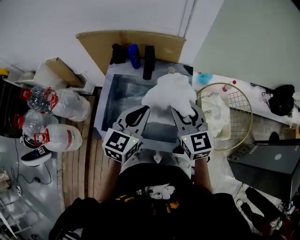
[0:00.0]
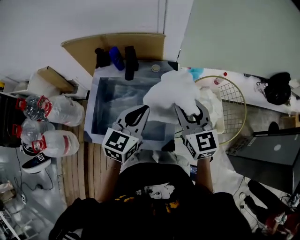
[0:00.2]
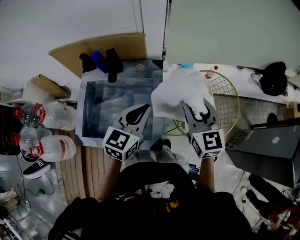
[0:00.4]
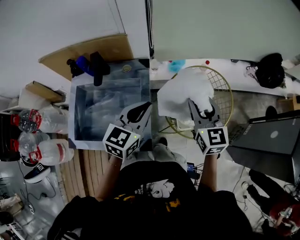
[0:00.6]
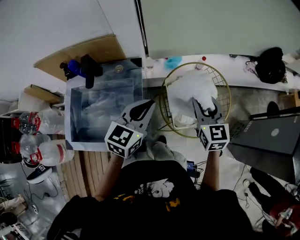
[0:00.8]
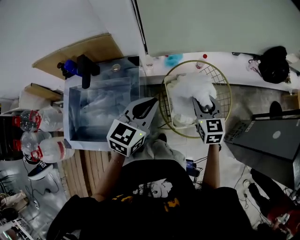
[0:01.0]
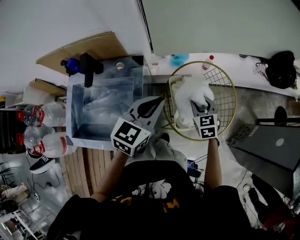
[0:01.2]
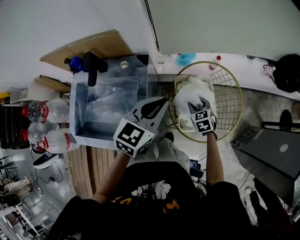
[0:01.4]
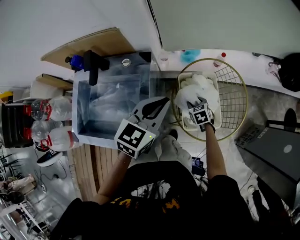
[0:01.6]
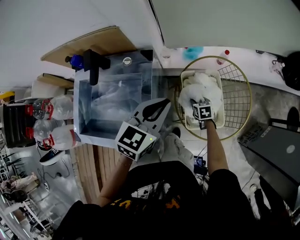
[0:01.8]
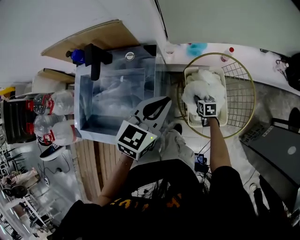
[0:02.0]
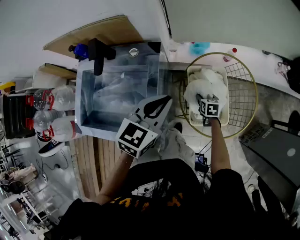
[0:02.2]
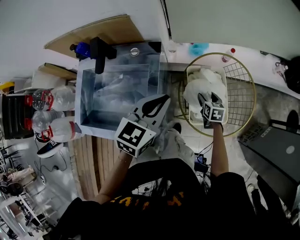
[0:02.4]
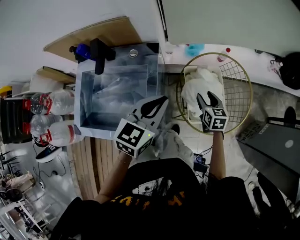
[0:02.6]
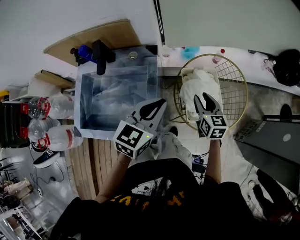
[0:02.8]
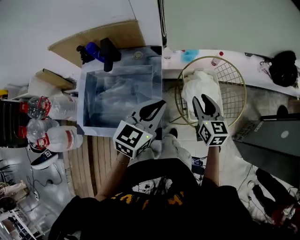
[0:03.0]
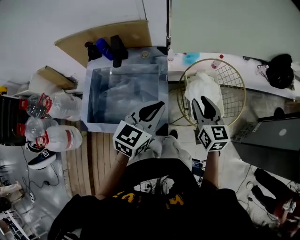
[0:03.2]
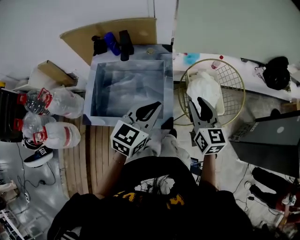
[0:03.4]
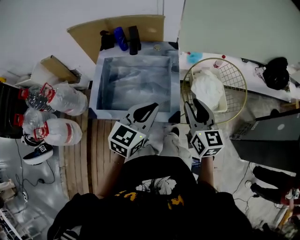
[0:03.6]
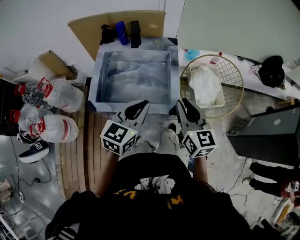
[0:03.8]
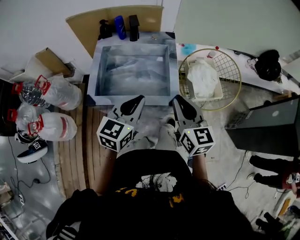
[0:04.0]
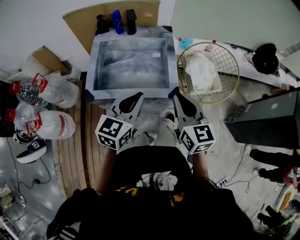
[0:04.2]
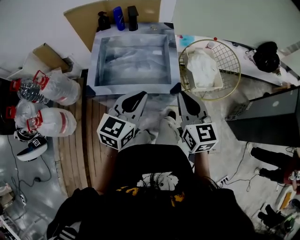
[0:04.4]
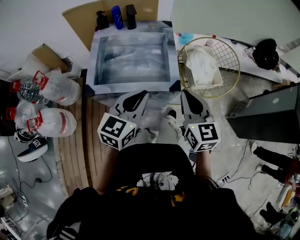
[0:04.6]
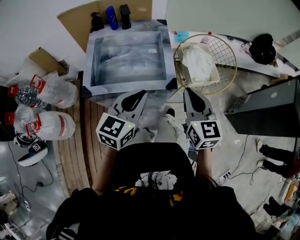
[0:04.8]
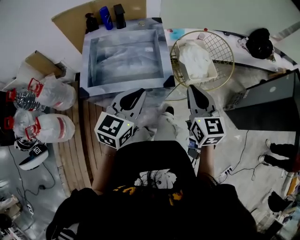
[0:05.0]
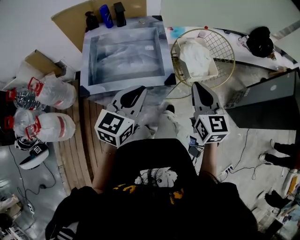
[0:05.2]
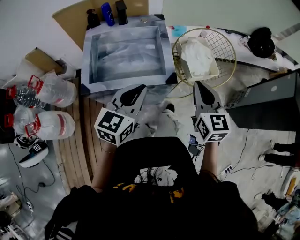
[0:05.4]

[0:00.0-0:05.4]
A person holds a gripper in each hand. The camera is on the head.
0:00.0 to 0:01.4: The left gripper goes approximately 30 cm to the right; the right gripper travels to the right and downward by approximately 40 cm, and tilts its fingers approximately 30 degrees downward.
0:01.4 to 0:02.8: The left gripper moves backward and to the left, approximately 10 cm. The right gripper shifts about 10 cm upward, and changes its angle by approximately 30 degrees.
0:02.8 to 0:04.0: The right gripper is displaced backward, to the left and upward by roughly 40 cm. Meanwhile the left gripper goes about 30 cm backward and to the left.
0:04.0 to 0:05.4: The right gripper travels to the right by roughly 10 cm.

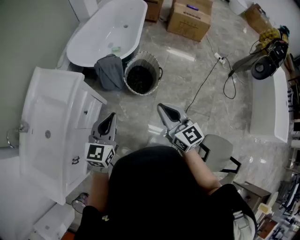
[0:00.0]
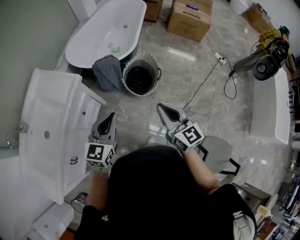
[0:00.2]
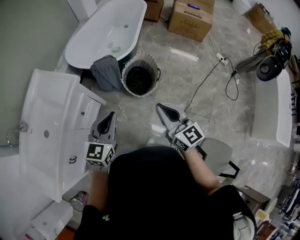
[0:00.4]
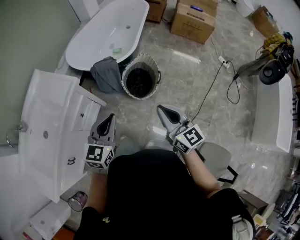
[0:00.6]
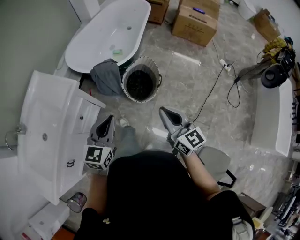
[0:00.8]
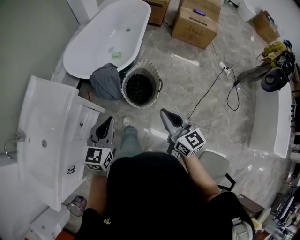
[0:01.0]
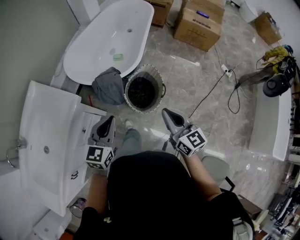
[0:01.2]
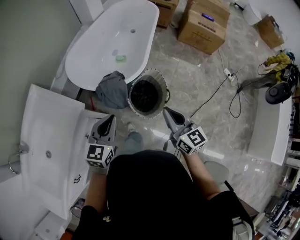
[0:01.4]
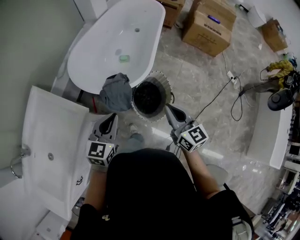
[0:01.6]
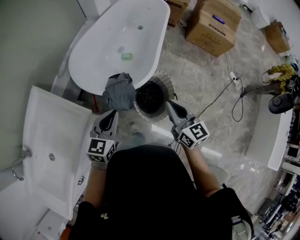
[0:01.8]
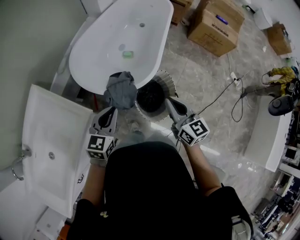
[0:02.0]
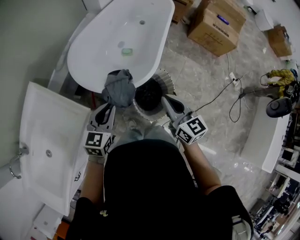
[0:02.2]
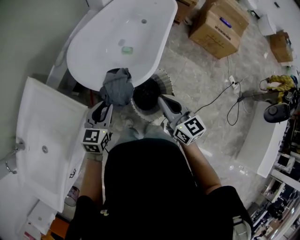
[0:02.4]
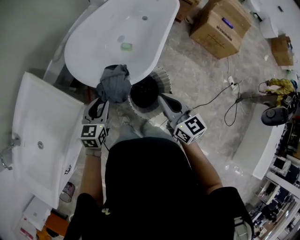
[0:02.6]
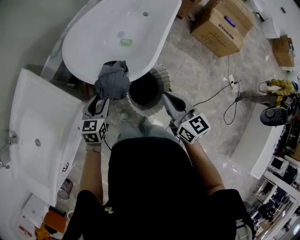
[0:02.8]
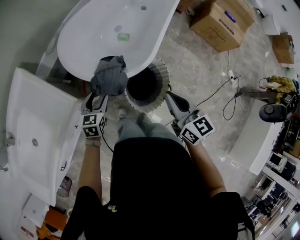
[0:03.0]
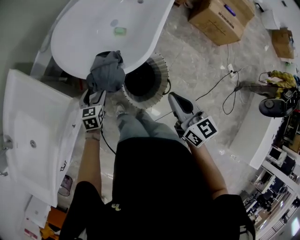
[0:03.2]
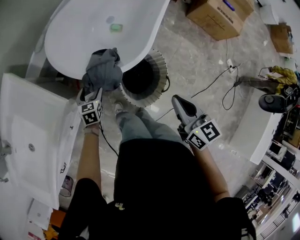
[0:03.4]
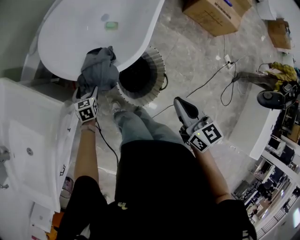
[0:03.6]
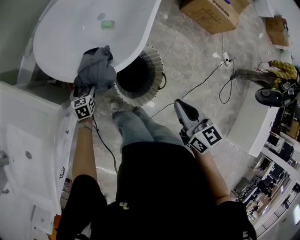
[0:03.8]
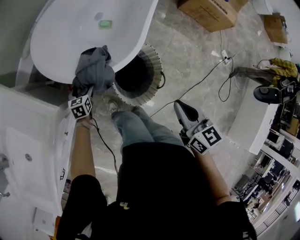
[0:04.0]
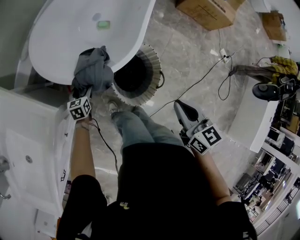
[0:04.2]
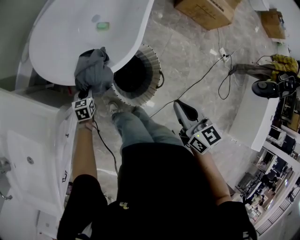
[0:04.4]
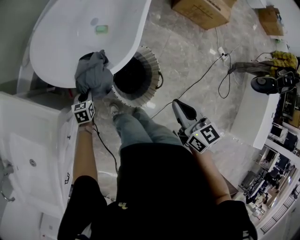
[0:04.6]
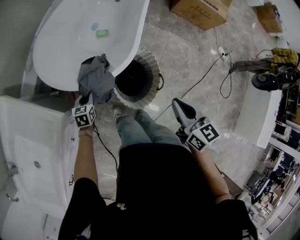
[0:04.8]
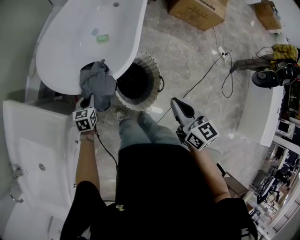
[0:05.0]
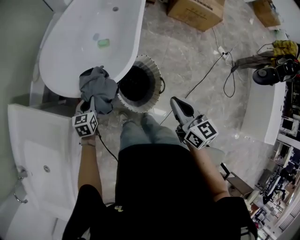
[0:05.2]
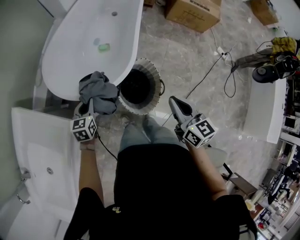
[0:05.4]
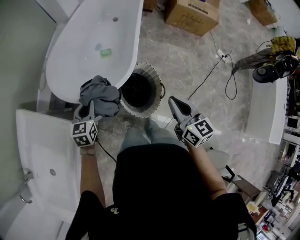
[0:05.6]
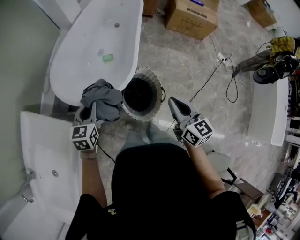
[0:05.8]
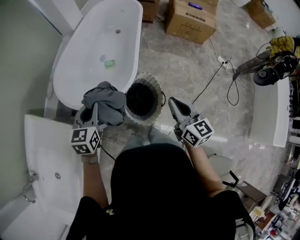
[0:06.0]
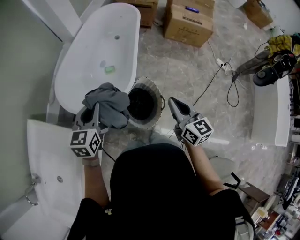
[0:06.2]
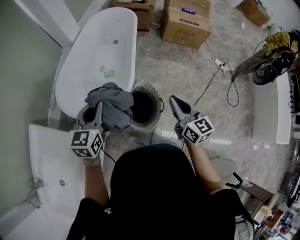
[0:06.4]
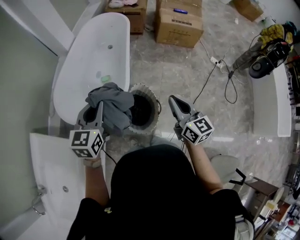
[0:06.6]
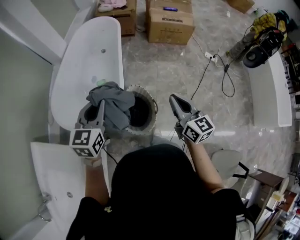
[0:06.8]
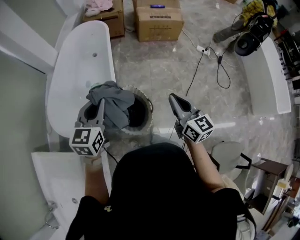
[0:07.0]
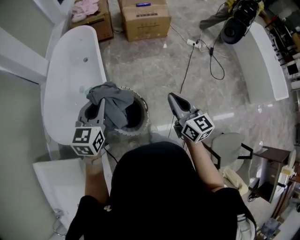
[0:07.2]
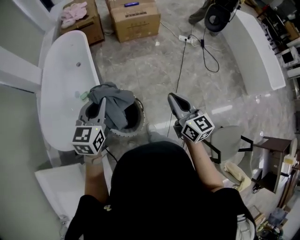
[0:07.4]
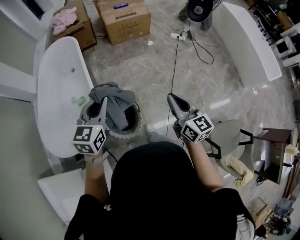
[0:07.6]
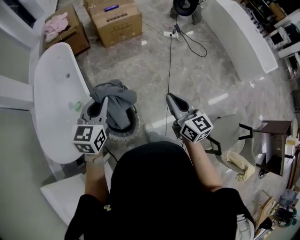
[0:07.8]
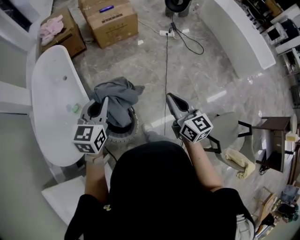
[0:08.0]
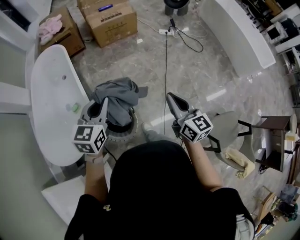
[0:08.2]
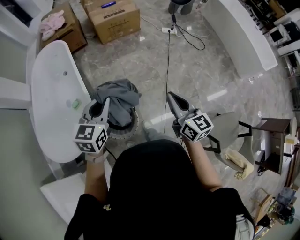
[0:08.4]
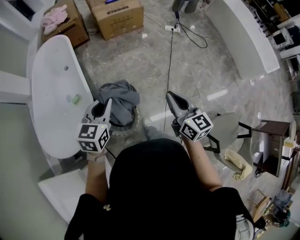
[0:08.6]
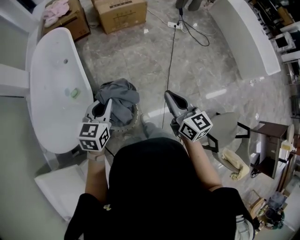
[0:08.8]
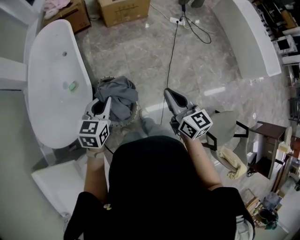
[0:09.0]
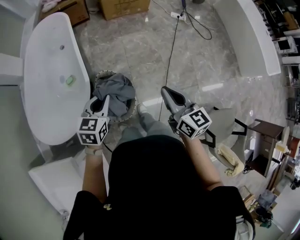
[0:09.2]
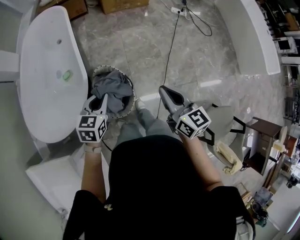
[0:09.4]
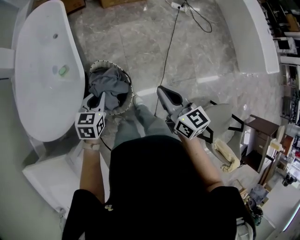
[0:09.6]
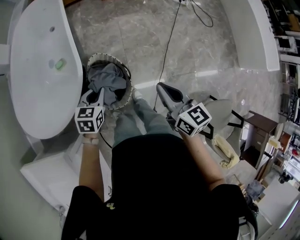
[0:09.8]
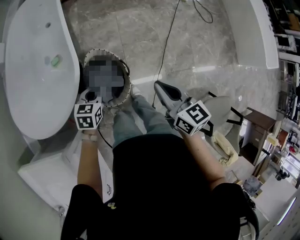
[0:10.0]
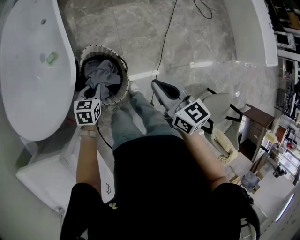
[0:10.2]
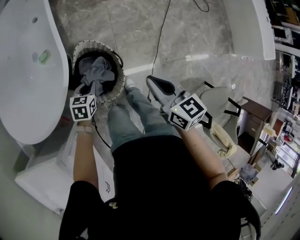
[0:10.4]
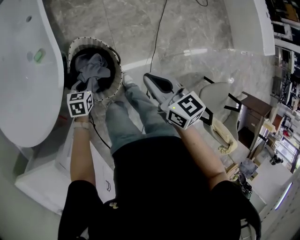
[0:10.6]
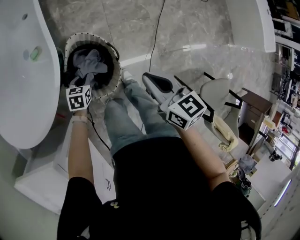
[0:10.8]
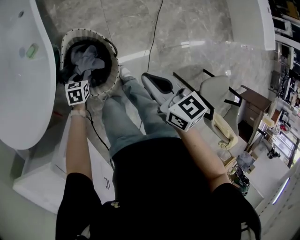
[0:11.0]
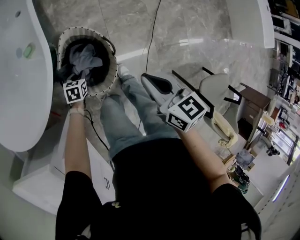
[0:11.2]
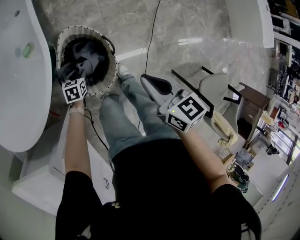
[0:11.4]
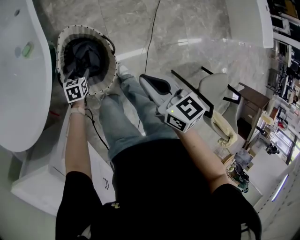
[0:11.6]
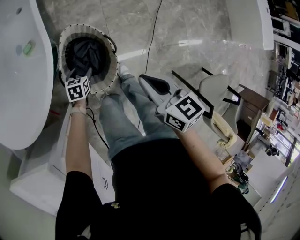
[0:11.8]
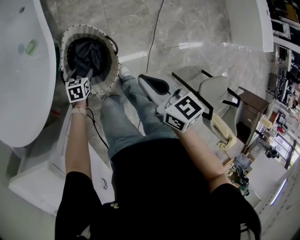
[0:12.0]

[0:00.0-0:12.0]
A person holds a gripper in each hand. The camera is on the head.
0:00.0 to 0:01.6: Both grippers travel together forward, about 30 cm.
0:01.6 to 0:03.0: The left gripper moves downward and forward, approximately 20 cm, swivels about 30 degrees, and opens; the right gripper shifts some 10 cm forward.
0:03.0 to 0:04.4: The right gripper travels downward, to the right and backward by approximately 10 cm. Meanwhile the left gripper heads downward, covering about 20 cm, and closes its fingers.
0:04.4 to 0:06.0: The left gripper shifts about 40 cm upward, and rotates approximately 30 degrees. Meanwhile the right gripper travels upward by roughly 10 cm.
0:06.0 to 0:07.6: The left gripper ends up about 35 cm from where it was, and turns by some 40 degrees. Meanwhile the right gripper shifts by about 25 cm, and swivels approximately 30 degrees.
0:07.6 to 0:09.0: The right gripper moves about 5 cm. The left gripper shifts about 10 cm downward.
0:09.0 to 0:10.4: The left gripper travels downward by approximately 35 cm, and turns by about 20 degrees, while the right gripper travels downward and to the left by approximately 20 cm.
0:10.4 to 0:12.0: The right gripper shifts roughly 5 cm downward. Meanwhile the left gripper shifts roughly 15 cm downward, and opens up.

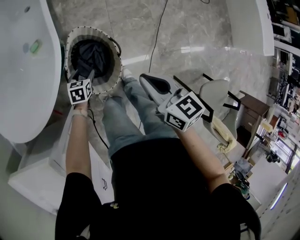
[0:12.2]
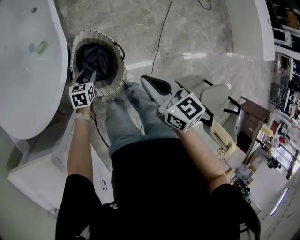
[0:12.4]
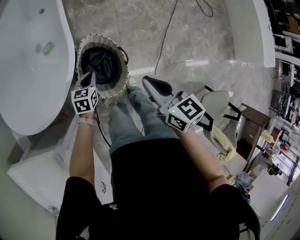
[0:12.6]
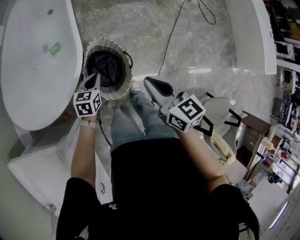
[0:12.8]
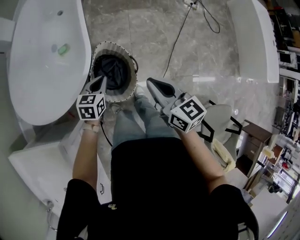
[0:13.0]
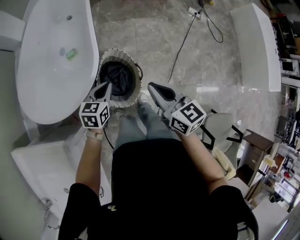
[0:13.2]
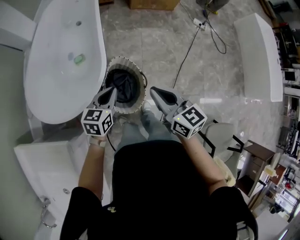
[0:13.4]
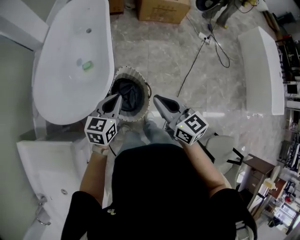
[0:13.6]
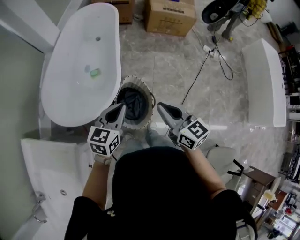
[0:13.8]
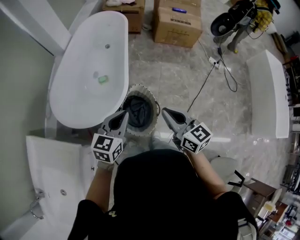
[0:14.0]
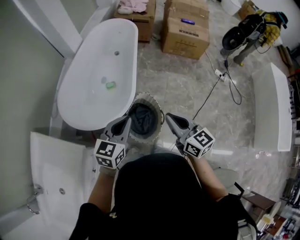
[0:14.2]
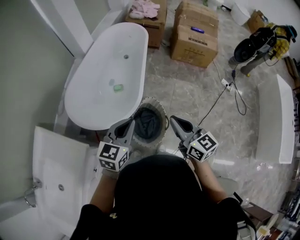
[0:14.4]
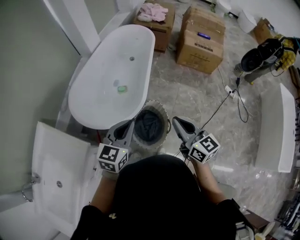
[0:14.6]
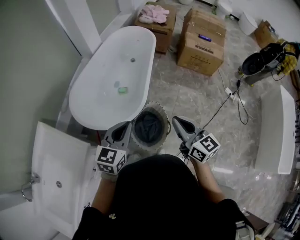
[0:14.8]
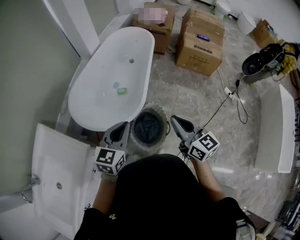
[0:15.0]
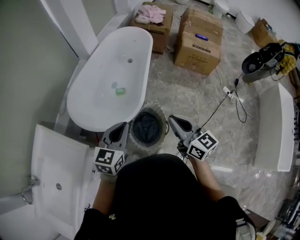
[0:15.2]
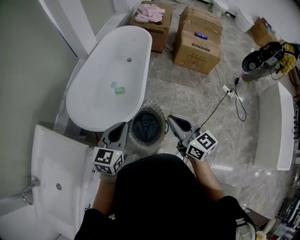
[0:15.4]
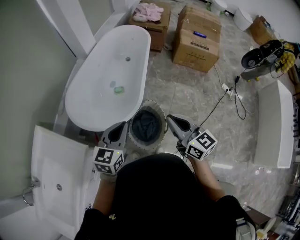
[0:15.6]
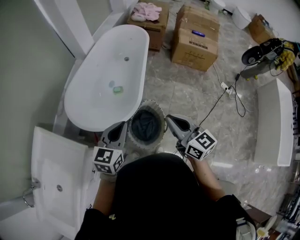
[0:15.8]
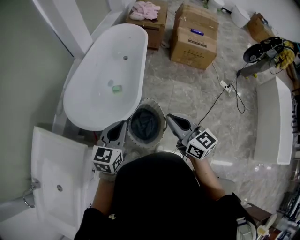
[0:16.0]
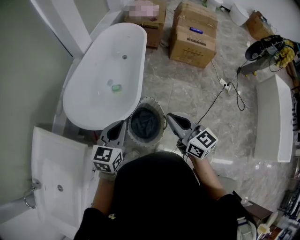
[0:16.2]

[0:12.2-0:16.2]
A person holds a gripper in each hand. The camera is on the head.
0:12.2 to 0:13.6: The right gripper travels upward by some 20 cm, and turns by roughly 20 degrees; the left gripper shifts about 40 cm upward, rotates roughly 30 degrees, and closes its fingers.
0:13.6 to 0:14.8: The left gripper goes some 15 cm upward and to the left, and swivels approximately 20 degrees. Meanwhile the right gripper is displaced upward by roughly 10 cm.
0:14.8 to 0:16.2: The two grippers keep their place.

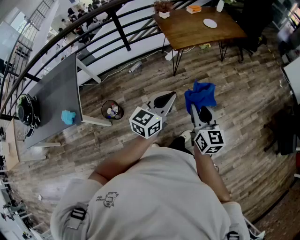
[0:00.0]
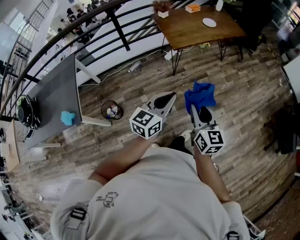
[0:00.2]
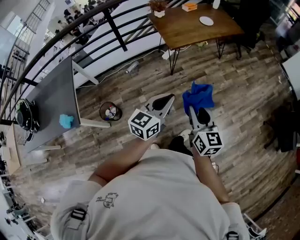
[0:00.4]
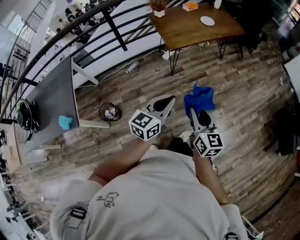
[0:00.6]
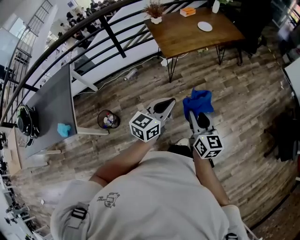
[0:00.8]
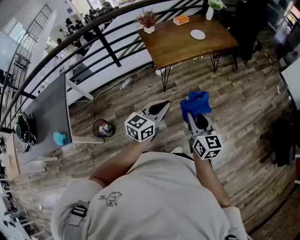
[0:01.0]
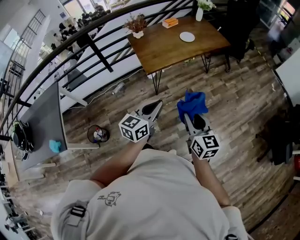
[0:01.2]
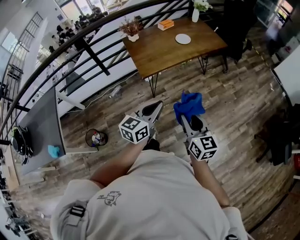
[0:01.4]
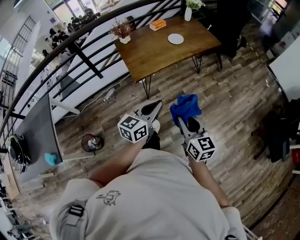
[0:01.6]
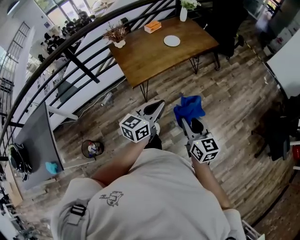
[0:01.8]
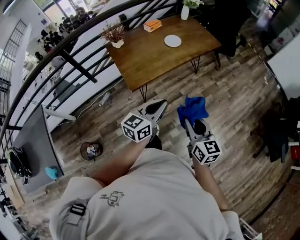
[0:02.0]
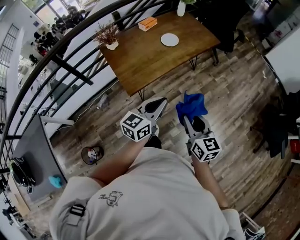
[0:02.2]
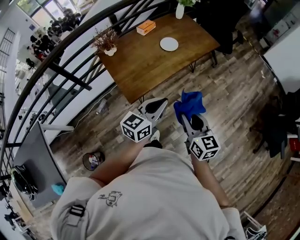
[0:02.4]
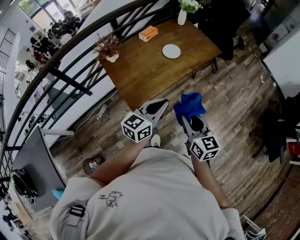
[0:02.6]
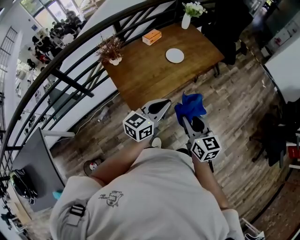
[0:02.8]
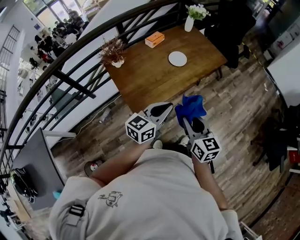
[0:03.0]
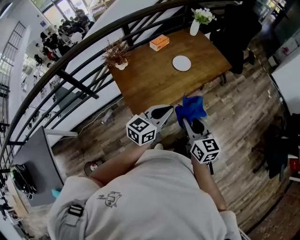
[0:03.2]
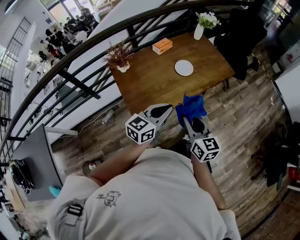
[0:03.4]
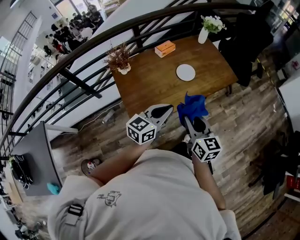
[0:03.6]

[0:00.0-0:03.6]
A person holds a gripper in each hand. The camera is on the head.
0:00.0 to 0:01.8: Both grippers move forward and to the right, roughly 35 cm.
0:01.8 to 0:03.6: Both grippers move forward, approximately 35 cm.
